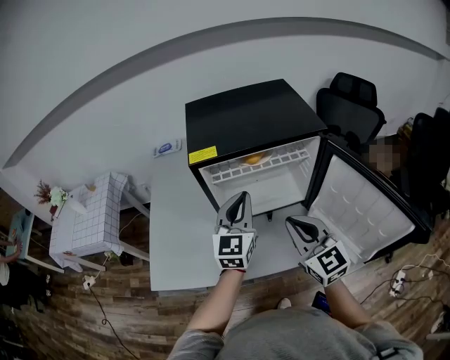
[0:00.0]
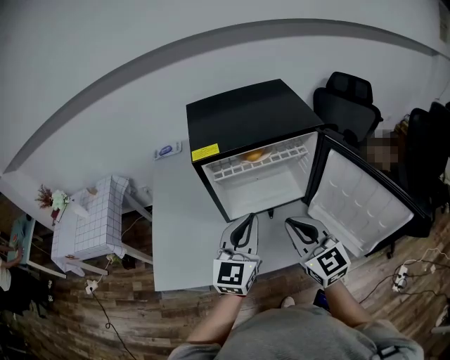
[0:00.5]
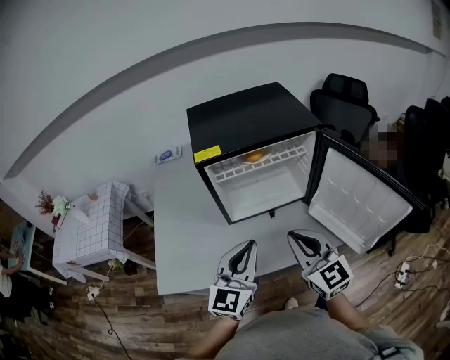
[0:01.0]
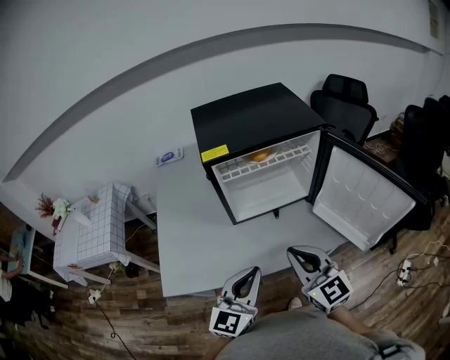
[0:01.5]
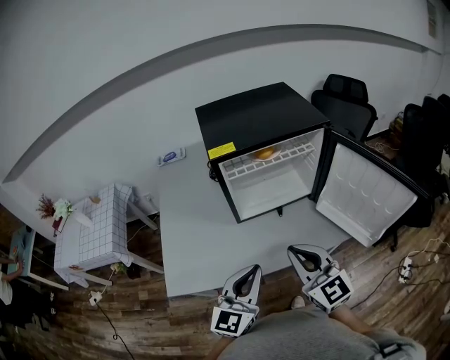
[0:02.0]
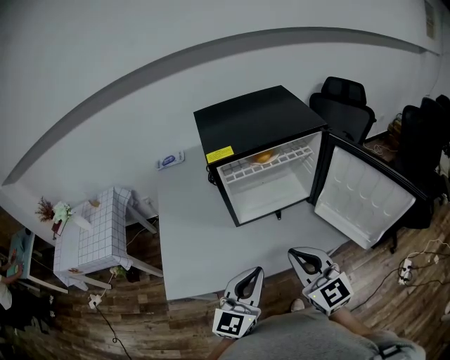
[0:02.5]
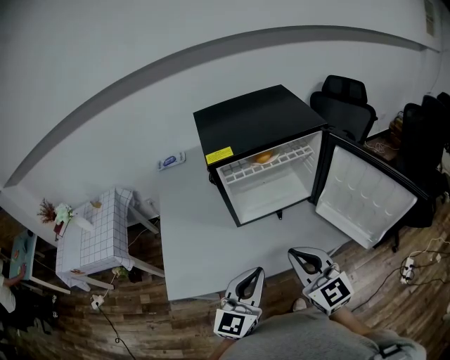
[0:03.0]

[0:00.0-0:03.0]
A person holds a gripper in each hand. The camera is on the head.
0:00.0 to 0:01.5: The right gripper shifts roughly 15 cm backward and to the left; the left gripper travels backward by some 20 cm.
0:01.5 to 0:03.0: The grippers stay close to where they were, moving slightly.

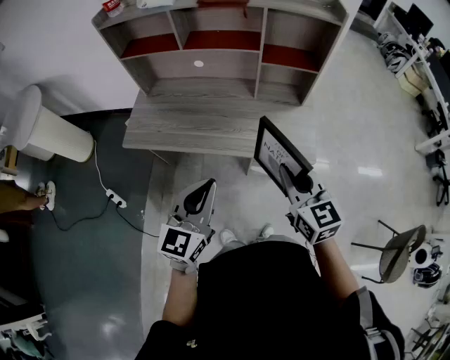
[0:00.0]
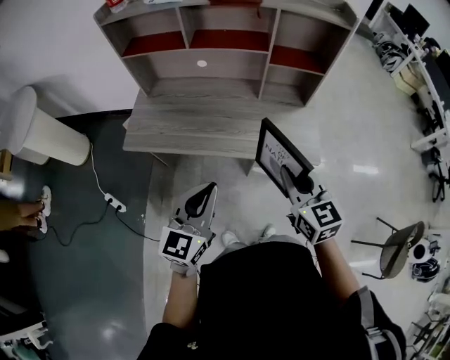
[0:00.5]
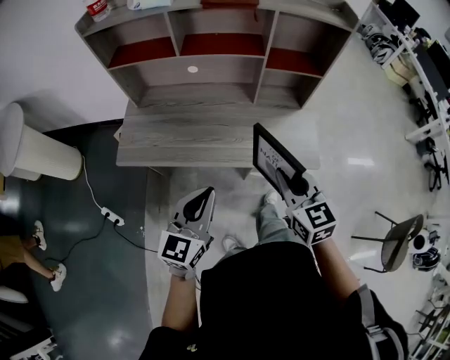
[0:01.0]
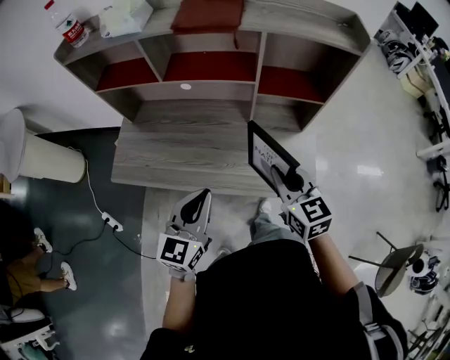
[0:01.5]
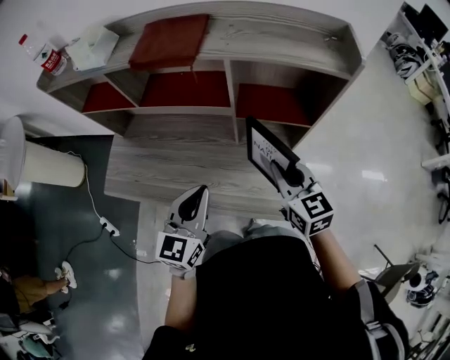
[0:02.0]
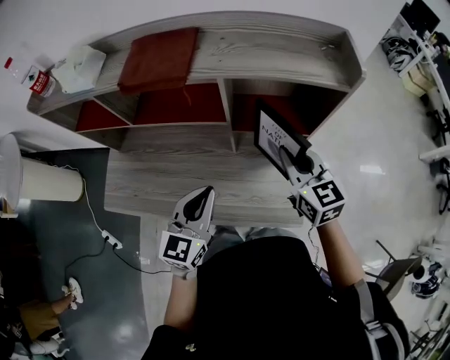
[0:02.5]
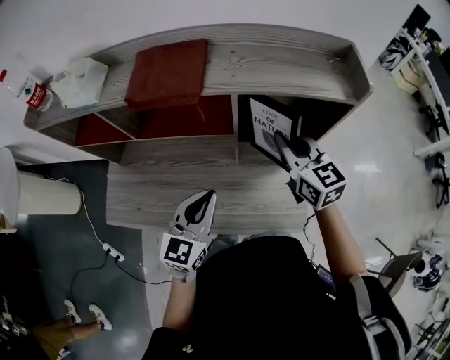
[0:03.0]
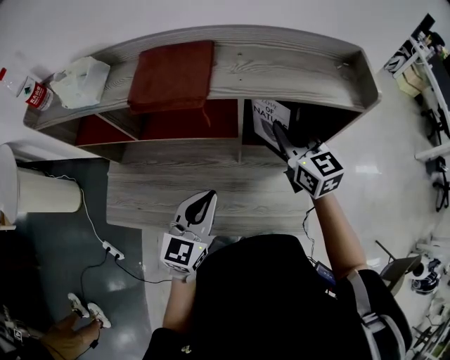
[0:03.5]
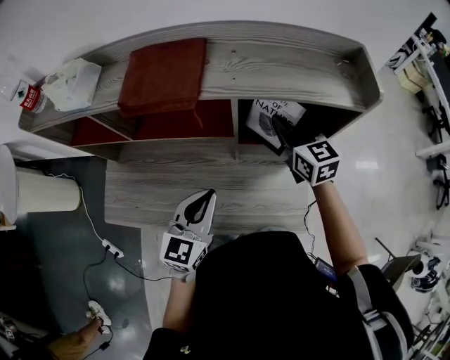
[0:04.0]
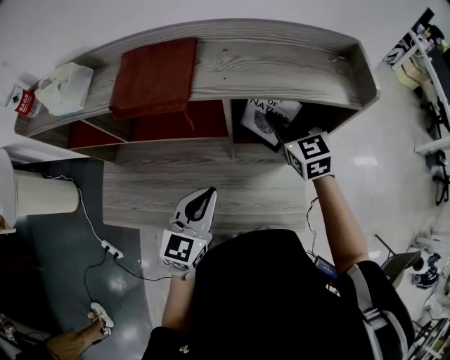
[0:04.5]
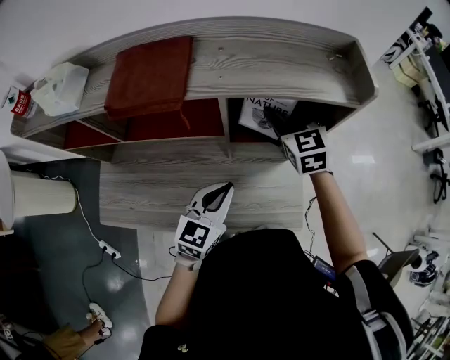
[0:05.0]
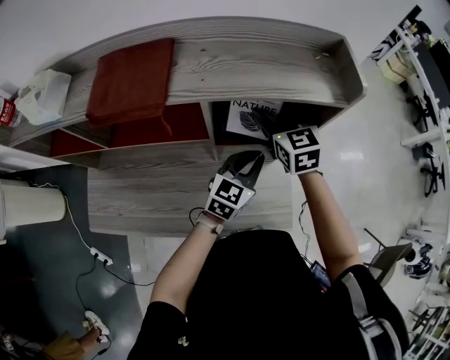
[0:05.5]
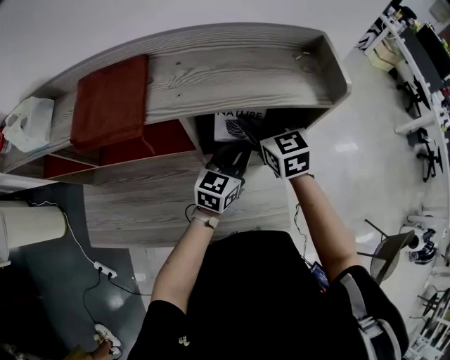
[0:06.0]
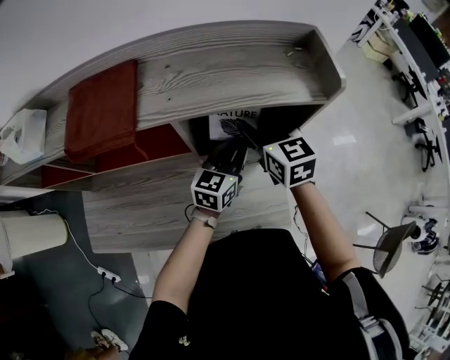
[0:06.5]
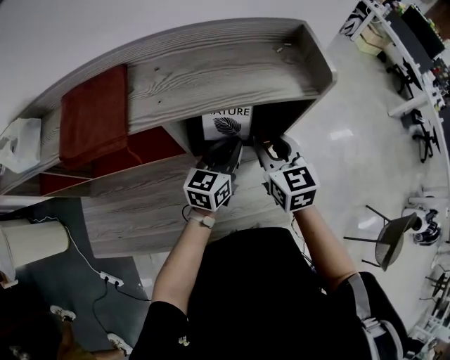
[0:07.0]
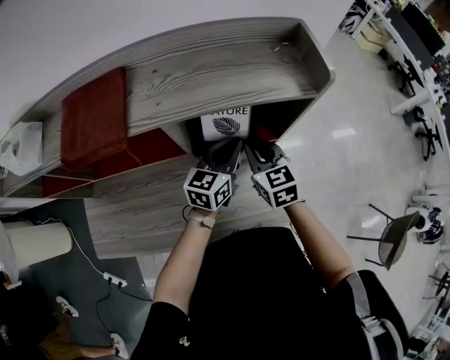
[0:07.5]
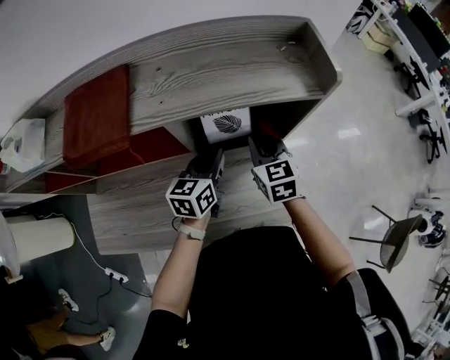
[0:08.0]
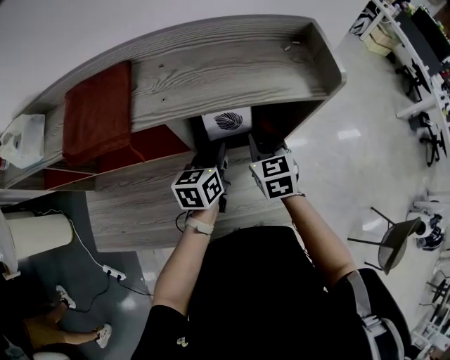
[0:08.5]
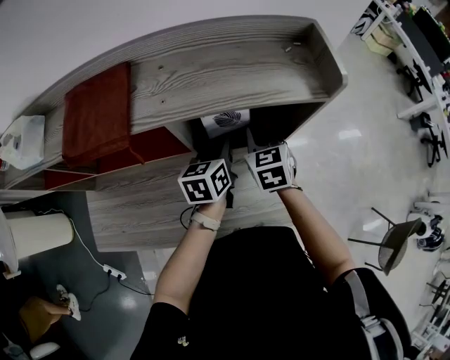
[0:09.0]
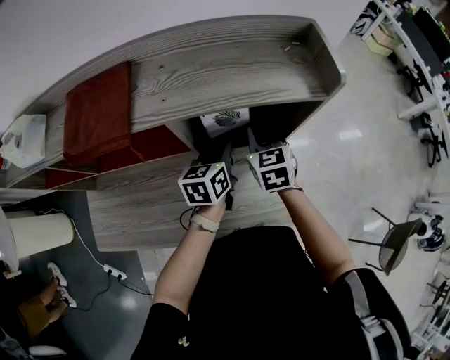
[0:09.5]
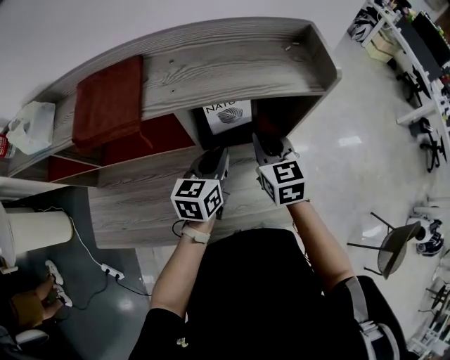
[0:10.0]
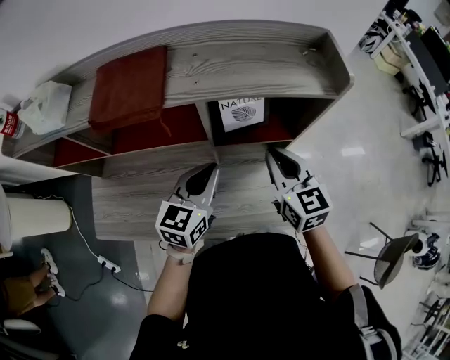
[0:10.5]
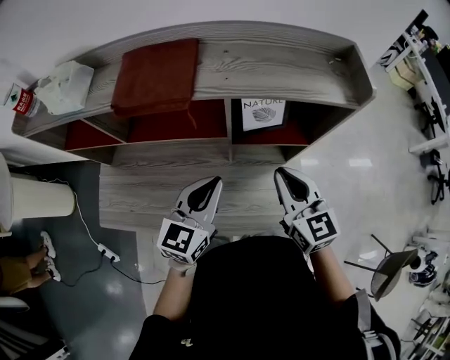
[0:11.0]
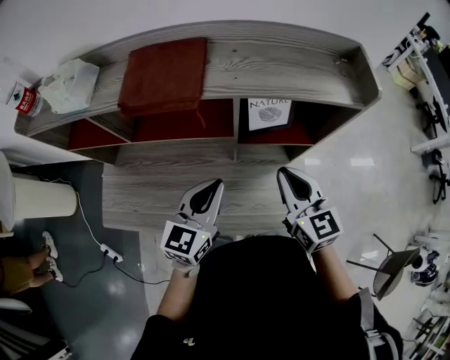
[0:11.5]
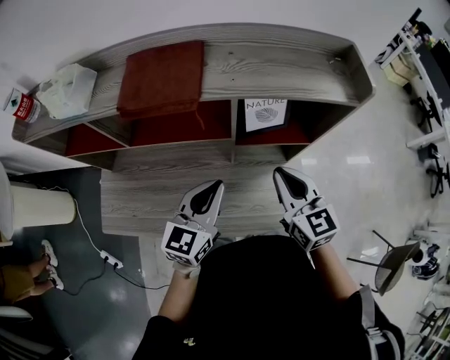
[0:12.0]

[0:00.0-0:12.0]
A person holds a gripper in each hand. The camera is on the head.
0:00.0 to 0:02.0: Both grippers move forward, roughly 30 cm.
0:02.0 to 0:04.0: The right gripper shifts approximately 20 cm forward, while the left gripper shifts about 10 cm forward.
0:04.0 to 0:06.0: The right gripper opens up; the left gripper moves to the right and forward, some 25 cm.
0:06.0 to 0:08.0: The right gripper is displaced downward and backward by roughly 10 cm, and closes its fingers, while the left gripper moves to the left, roughly 5 cm.
0:08.0 to 0:10.0: There are only small adjustments of the grippers.
0:10.0 to 0:12.0: The right gripper travels backward by roughly 10 cm, while the left gripper shifts roughly 15 cm backward, to the left and upward.

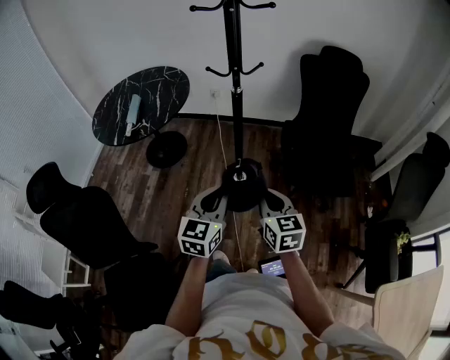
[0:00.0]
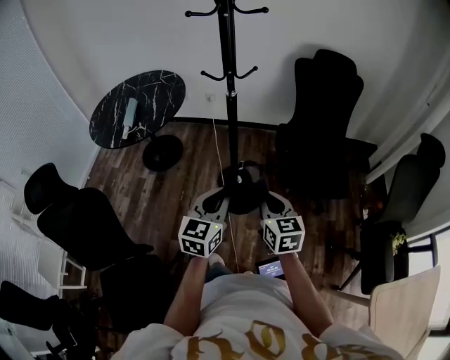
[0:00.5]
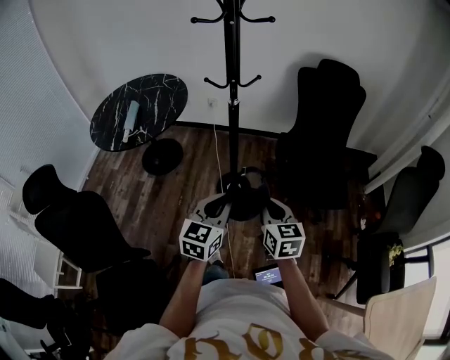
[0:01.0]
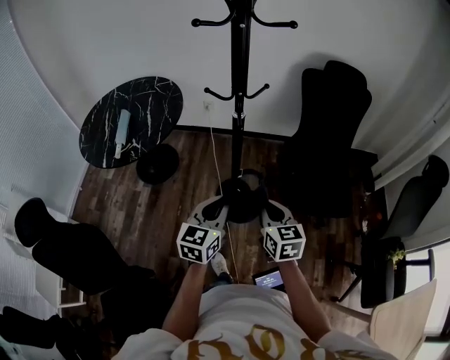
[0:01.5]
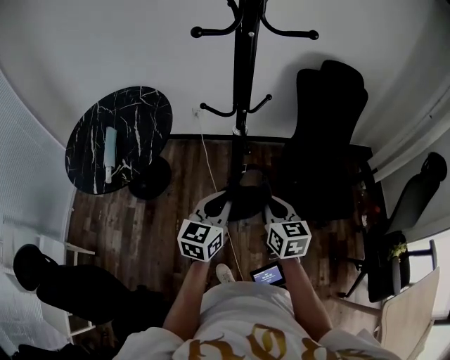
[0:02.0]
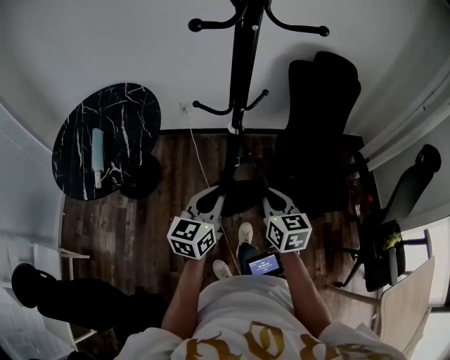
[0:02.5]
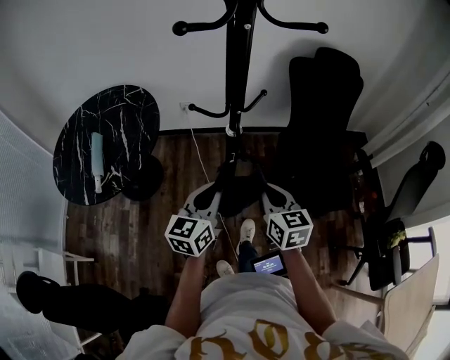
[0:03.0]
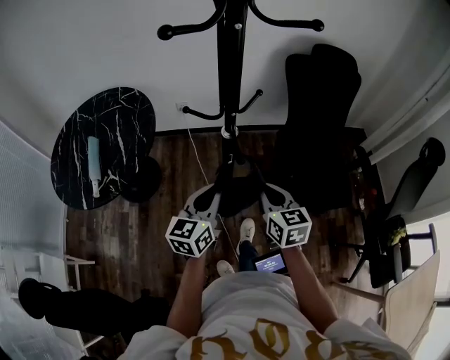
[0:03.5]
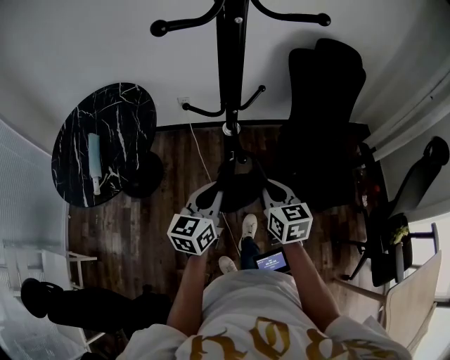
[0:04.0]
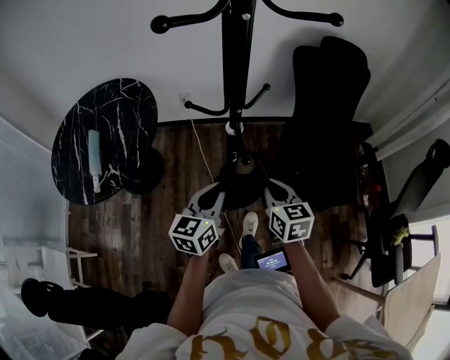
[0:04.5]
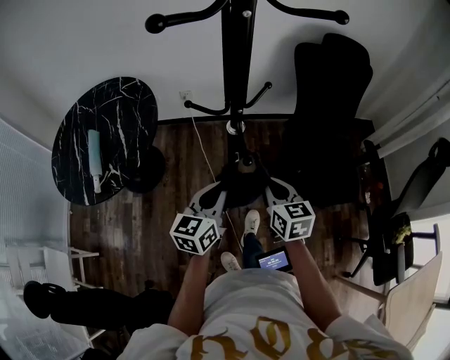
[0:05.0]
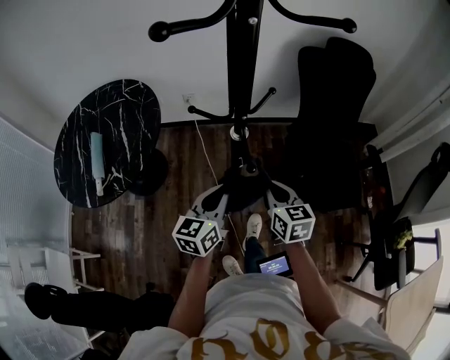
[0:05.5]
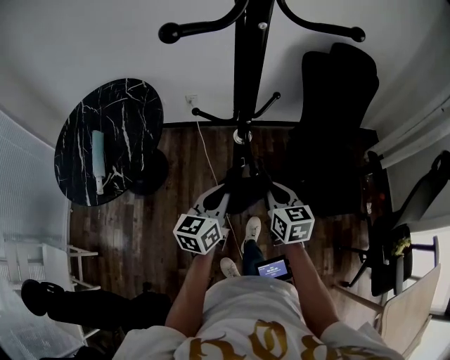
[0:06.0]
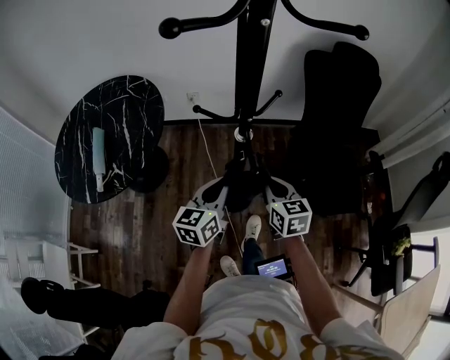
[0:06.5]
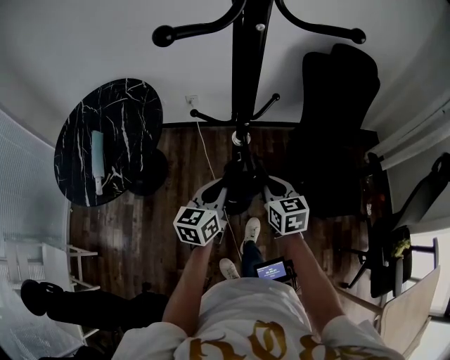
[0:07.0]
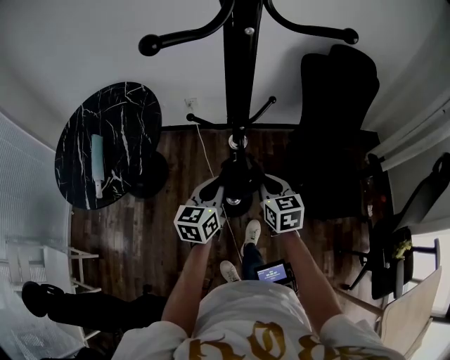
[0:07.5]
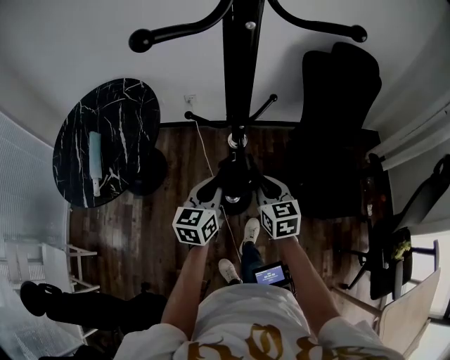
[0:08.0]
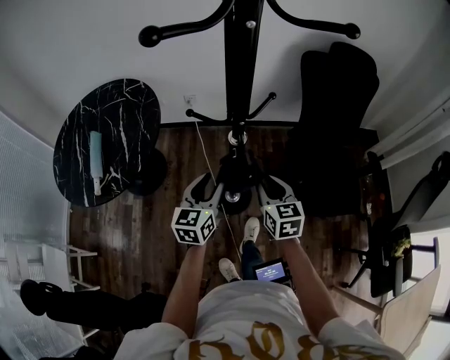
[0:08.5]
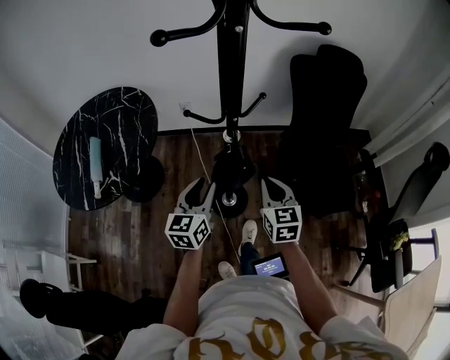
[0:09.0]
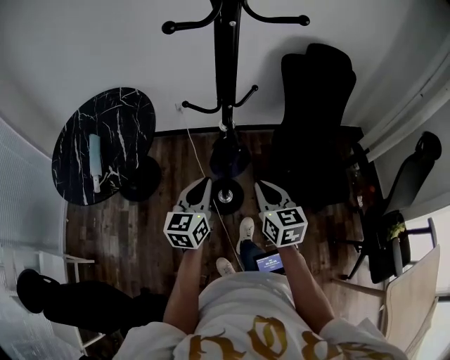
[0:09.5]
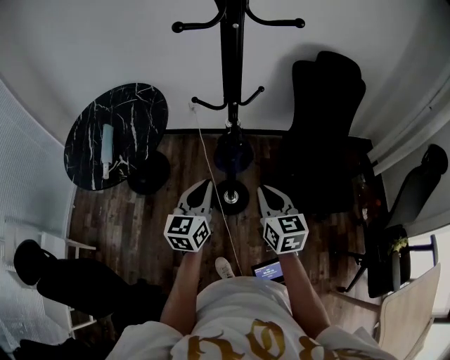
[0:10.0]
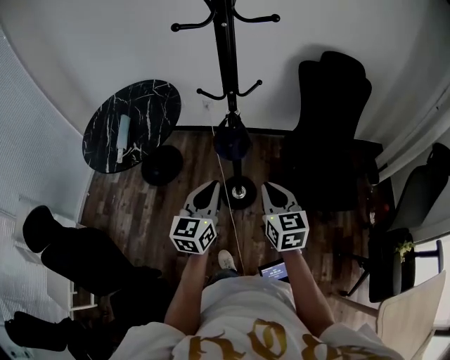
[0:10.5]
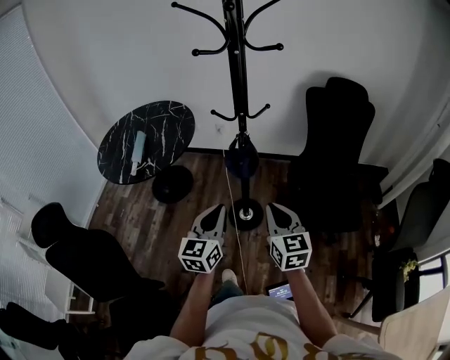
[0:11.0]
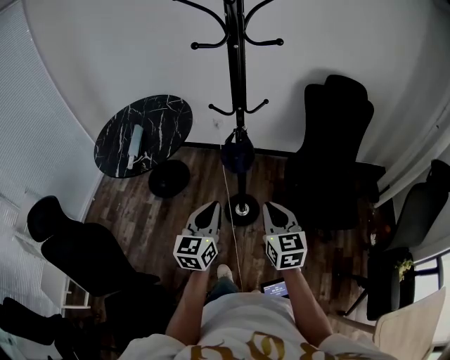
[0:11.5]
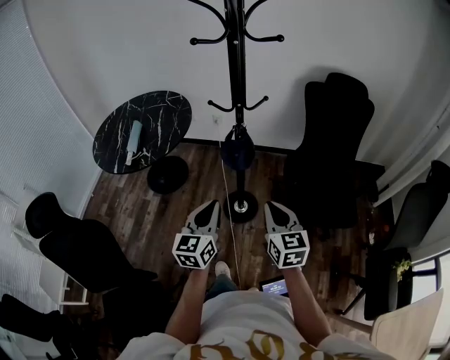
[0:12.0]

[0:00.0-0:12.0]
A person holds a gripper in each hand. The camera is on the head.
0:00.0 to 0:02.0: Both grippers travel together forward, some 20 cm.
0:02.0 to 0:04.0: Both grippers travel together forward, about 5 cm.
0:04.0 to 0:06.0: The grippers stay close to where they were, moving slightly.
0:06.0 to 0:08.0: The grippers make only small movements.
0:08.0 to 0:10.0: The grippers both shift backward and upward by approximately 15 cm. The left gripper opens, then closes again.
0:10.0 to 0:12.0: The two grippers go about 15 cm backward.
